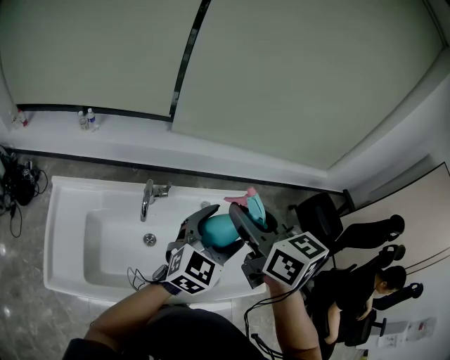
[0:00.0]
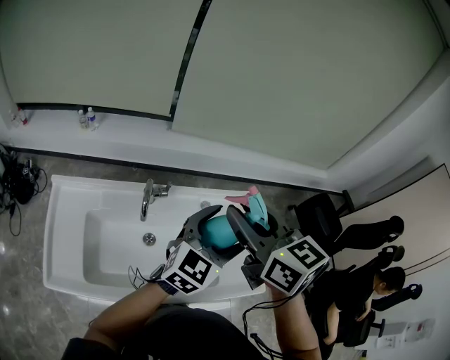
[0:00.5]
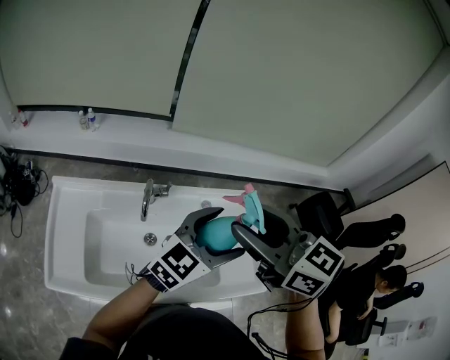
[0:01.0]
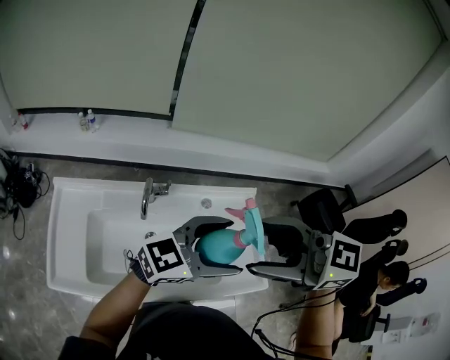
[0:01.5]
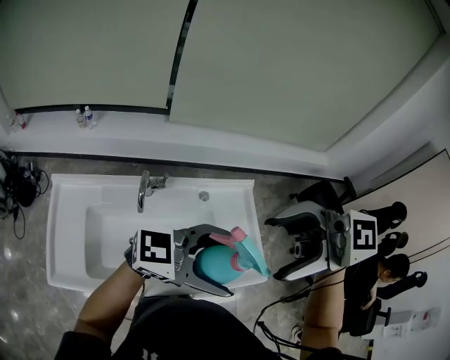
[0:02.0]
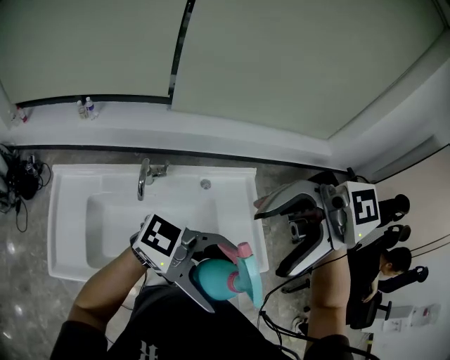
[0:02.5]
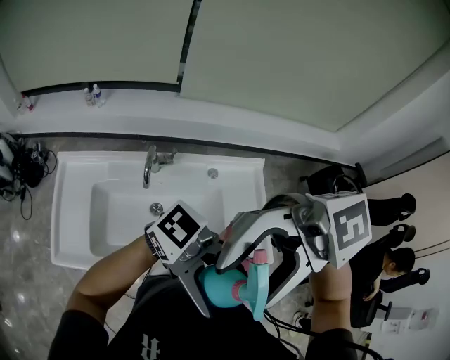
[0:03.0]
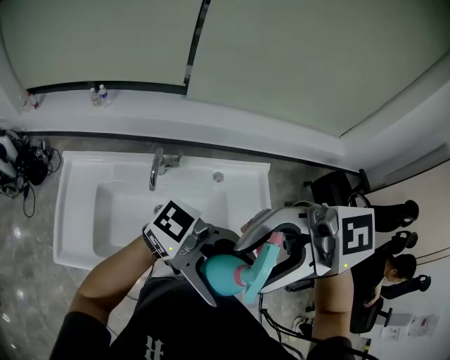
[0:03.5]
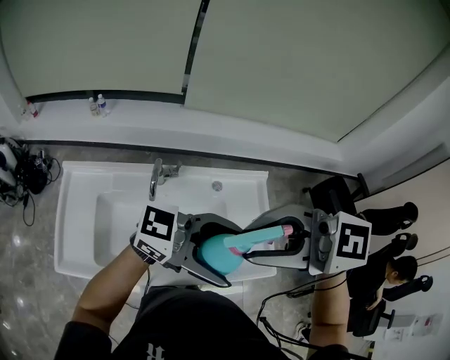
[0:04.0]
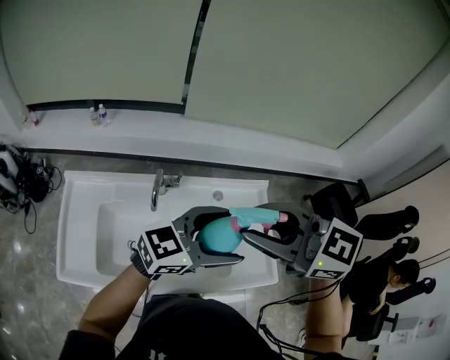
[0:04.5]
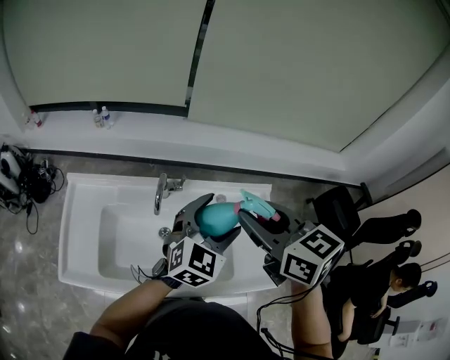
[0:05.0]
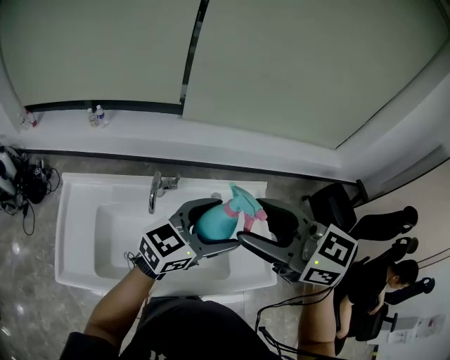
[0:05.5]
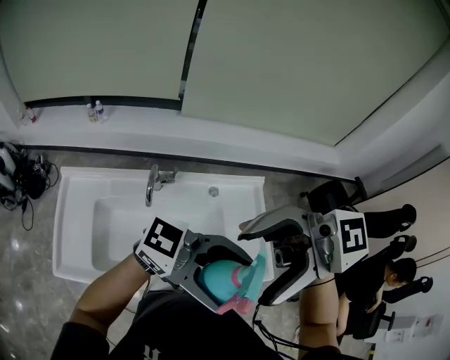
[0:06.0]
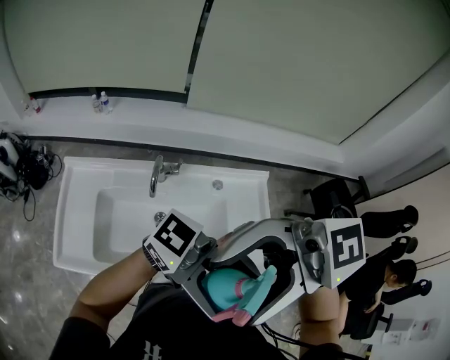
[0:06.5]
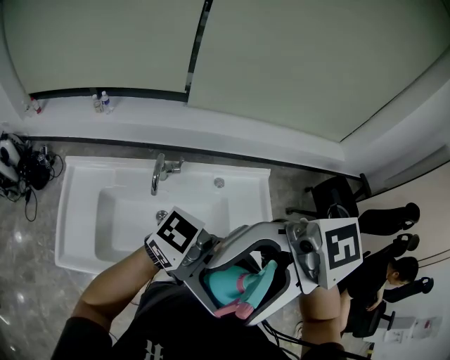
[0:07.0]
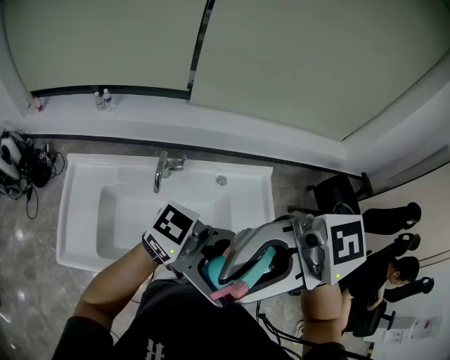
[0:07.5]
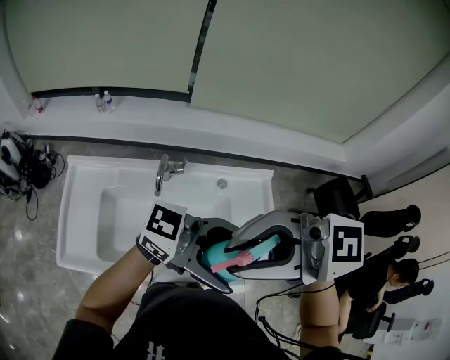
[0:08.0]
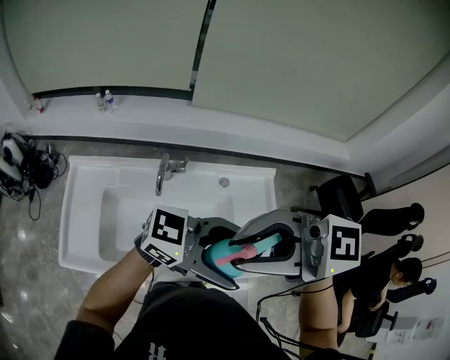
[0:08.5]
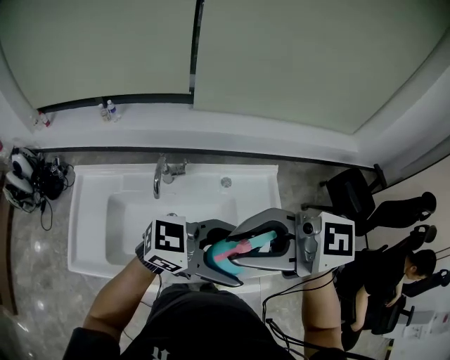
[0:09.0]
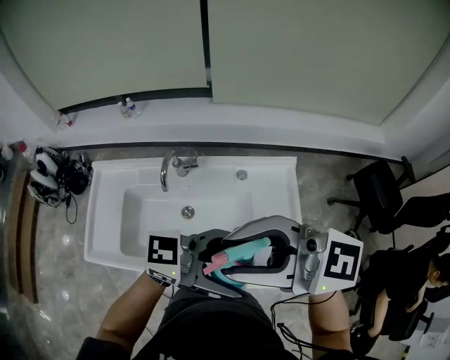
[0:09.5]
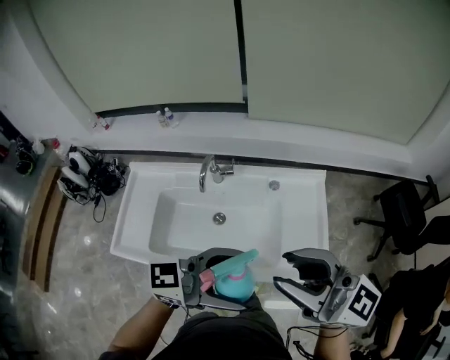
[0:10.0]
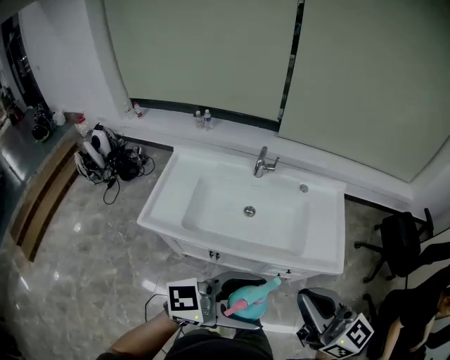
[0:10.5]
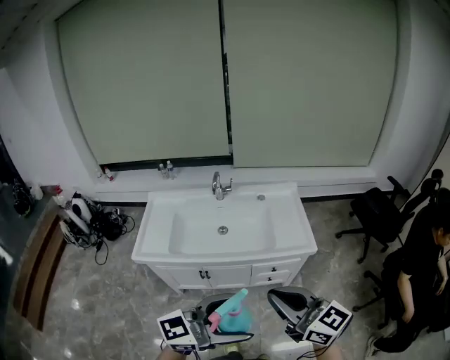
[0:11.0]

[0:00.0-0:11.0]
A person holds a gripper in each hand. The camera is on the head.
0:00.0 to 0:02.0: The left gripper ends up some 15 cm from where it was, and changes its angle by approximately 60 degrees, while the right gripper ends up about 15 cm from where it was, rotates roughly 70 degrees, and opens up.
0:02.0 to 0:03.5: The right gripper rotates about 20 degrees. The left gripper changes its angle by approximately 30 degrees.
0:03.5 to 0:05.5: The right gripper moves approximately 15 cm, and changes its angle by some 60 degrees; the left gripper moves some 20 cm, and turns by approximately 70 degrees.
0:05.5 to 0:07.5: The right gripper ends up roughly 15 cm from where it was, rotates approximately 60 degrees, and closes its fingers. The left gripper shifts by roughly 20 cm, and changes its angle by roughly 60 degrees.
0:07.5 to 0:09.0: The right gripper shifts by roughly 5 cm, and rotates approximately 20 degrees. Meanwhile the left gripper is displaced downward by some 5 cm, and swivels approximately 30 degrees.
0:09.0 to 0:11.0: The two grippers travel together, approximately 50 cm. The left gripper turns by some 30 degrees; the right gripper changes its angle by some 40 degrees.

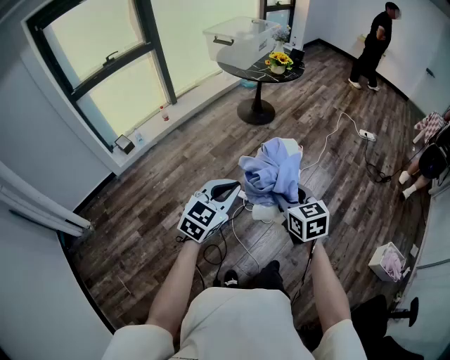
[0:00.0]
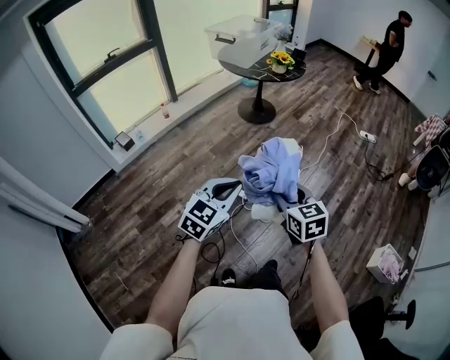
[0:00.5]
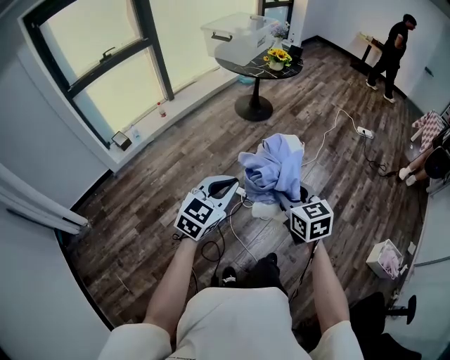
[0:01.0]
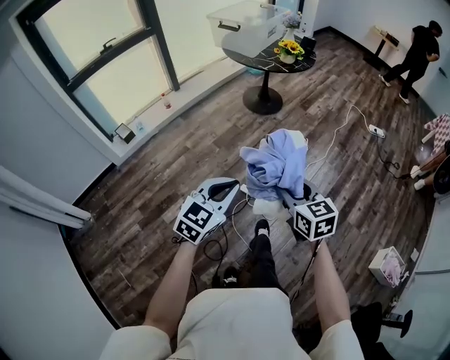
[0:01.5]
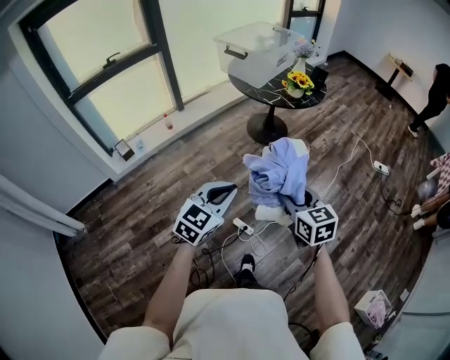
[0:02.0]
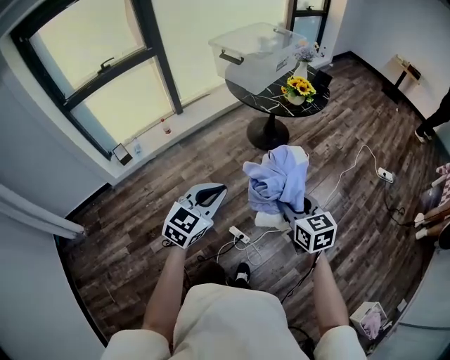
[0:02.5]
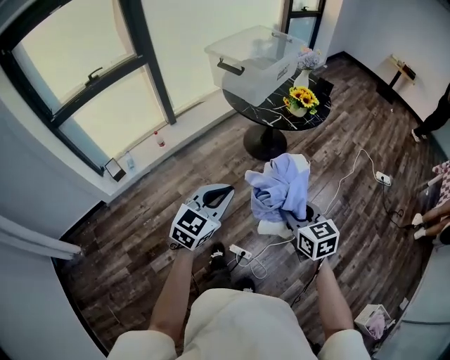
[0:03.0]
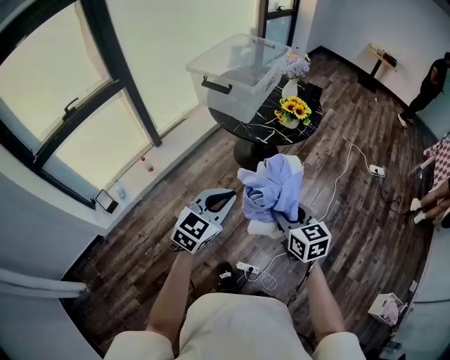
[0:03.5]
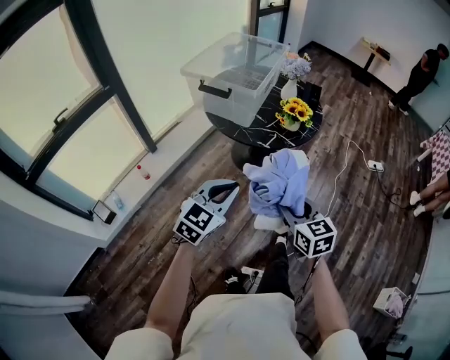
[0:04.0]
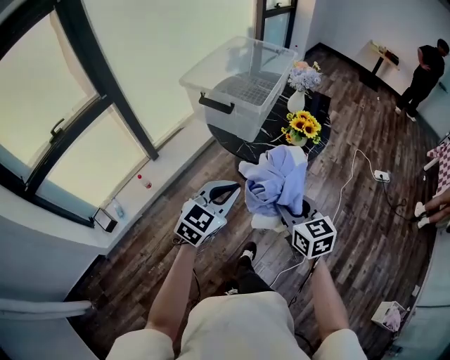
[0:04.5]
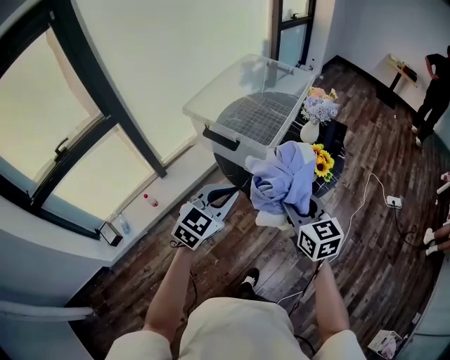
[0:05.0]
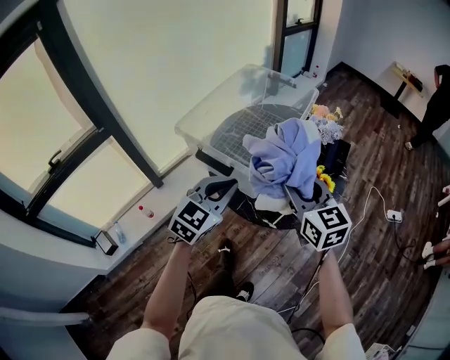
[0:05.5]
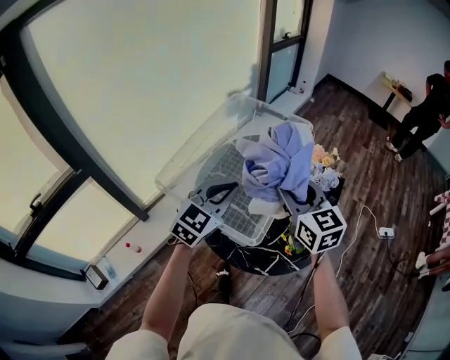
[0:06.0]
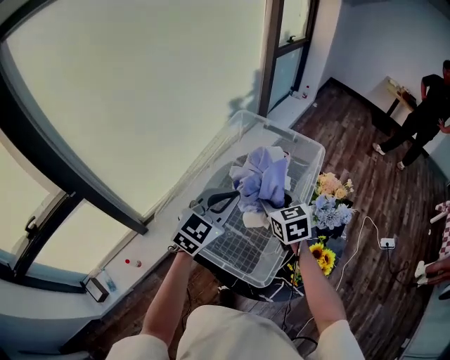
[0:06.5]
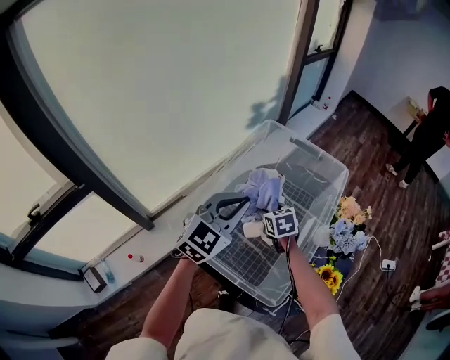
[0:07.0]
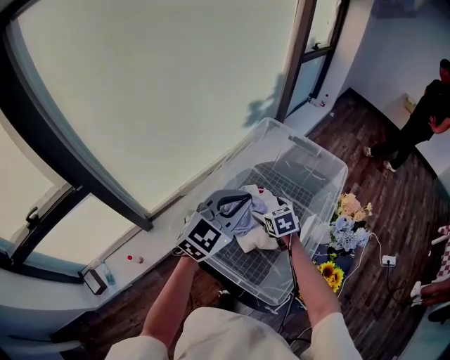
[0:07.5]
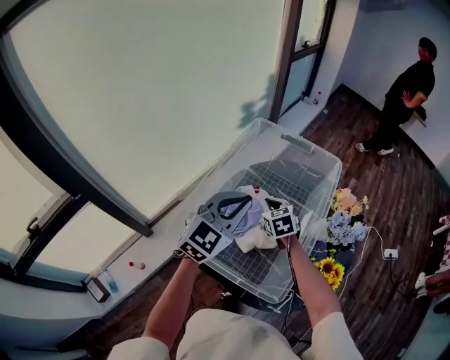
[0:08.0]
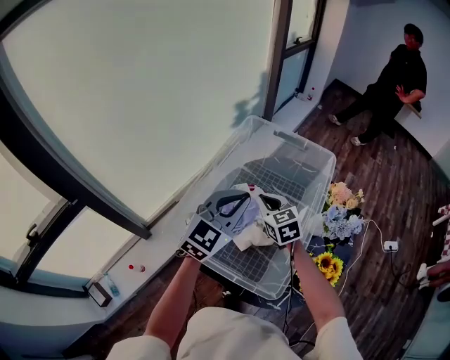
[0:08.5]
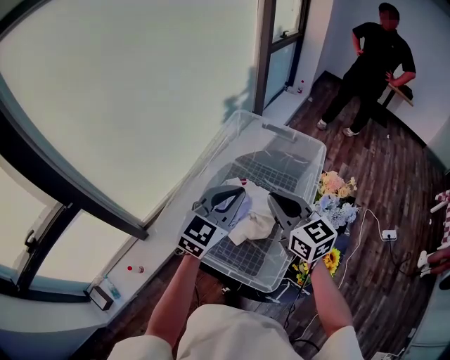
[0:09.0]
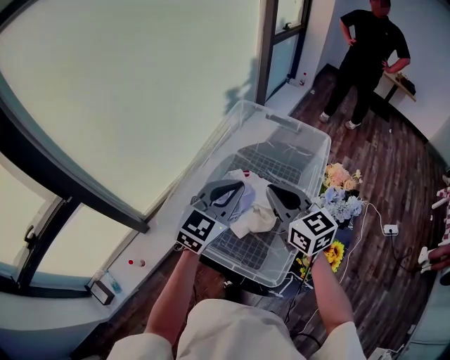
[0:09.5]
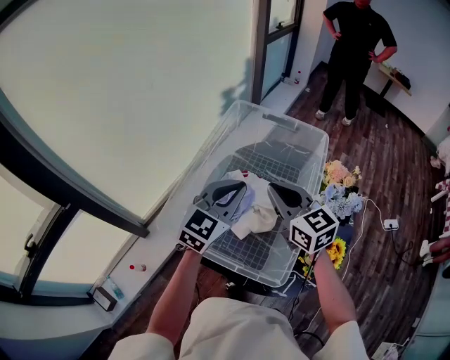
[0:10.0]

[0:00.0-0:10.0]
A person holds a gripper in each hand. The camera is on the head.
0:00.0 to 0:02.0: The two grippers go roughly 25 cm forward.
0:02.0 to 0:04.0: Both grippers move forward, about 35 cm.
0:04.0 to 0:06.0: The two grippers travel together, forward, about 60 cm.
0:06.0 to 0:08.0: The left gripper shifts about 15 cm forward and to the left; the right gripper moves downward, forward and to the left, some 30 cm, angles its fingers downward, by roughly 30 degrees, and closes up.
0:08.0 to 0:10.0: The right gripper shifts approximately 20 cm upward and backward, and swivels approximately 30 degrees.

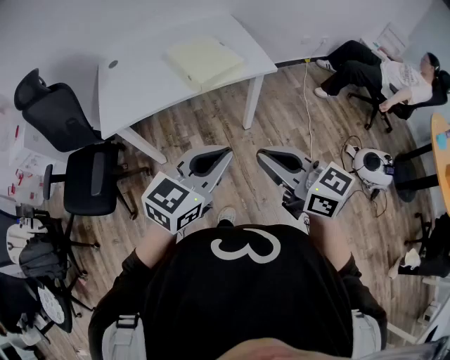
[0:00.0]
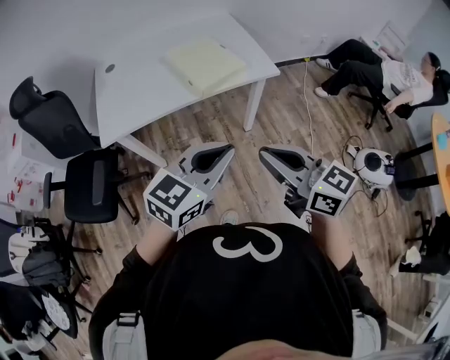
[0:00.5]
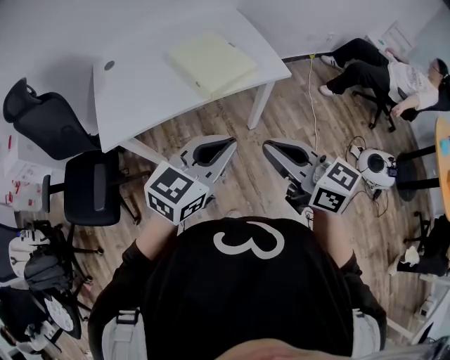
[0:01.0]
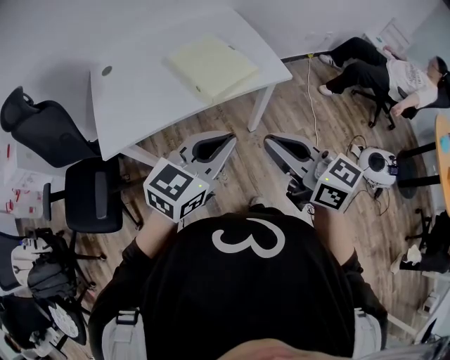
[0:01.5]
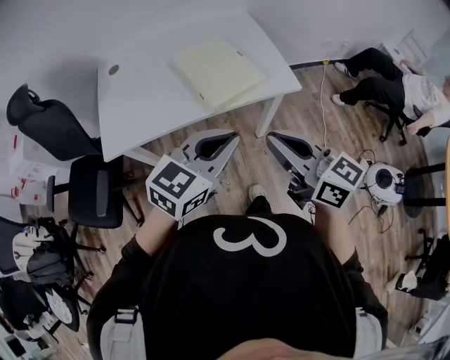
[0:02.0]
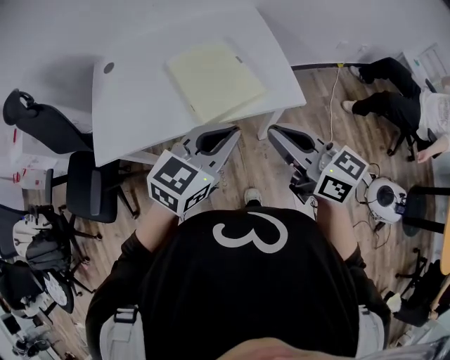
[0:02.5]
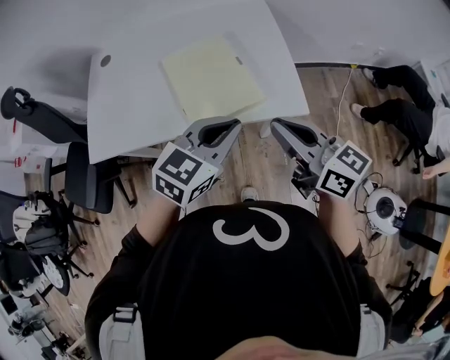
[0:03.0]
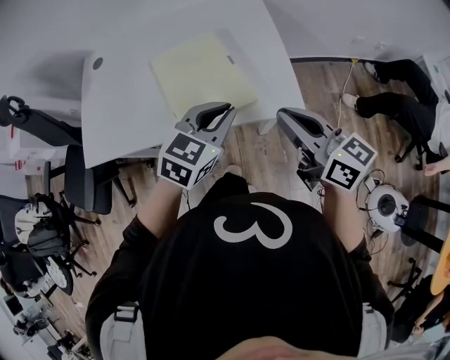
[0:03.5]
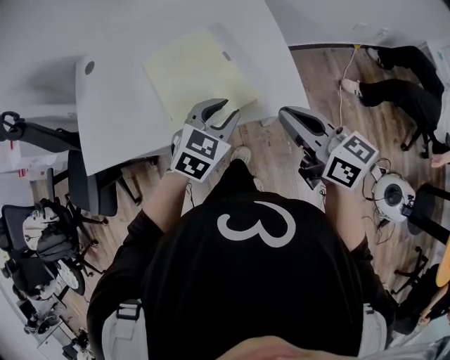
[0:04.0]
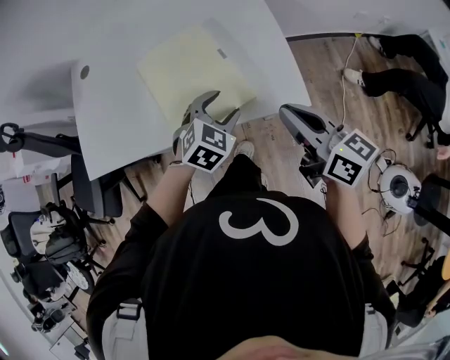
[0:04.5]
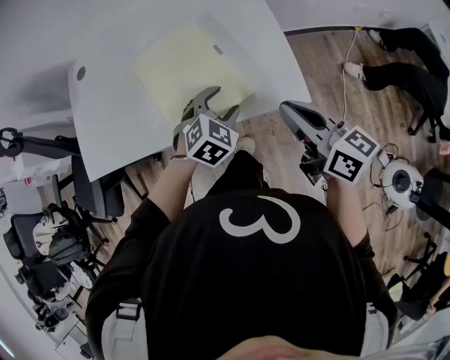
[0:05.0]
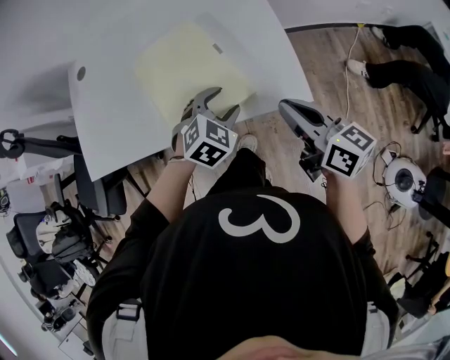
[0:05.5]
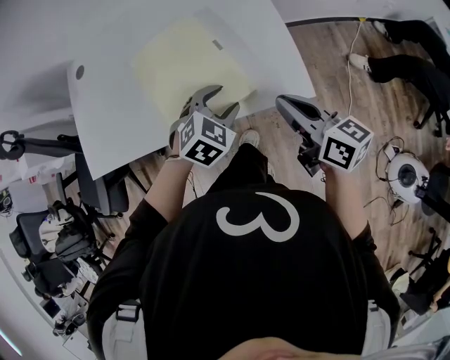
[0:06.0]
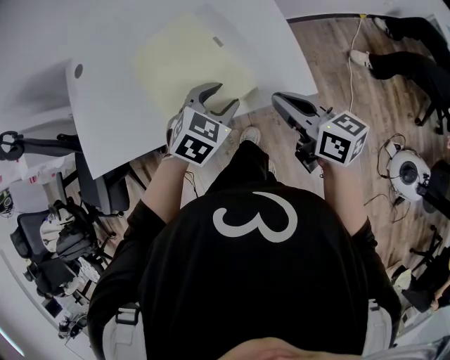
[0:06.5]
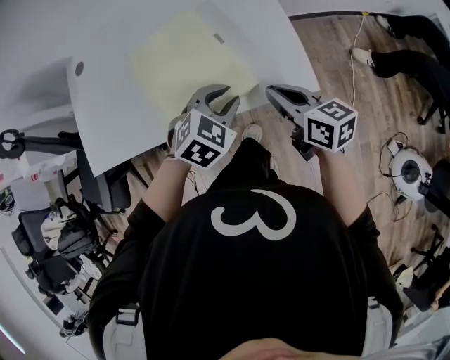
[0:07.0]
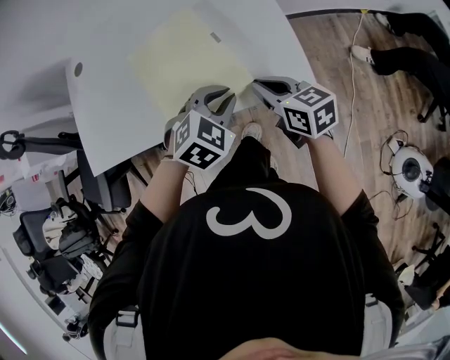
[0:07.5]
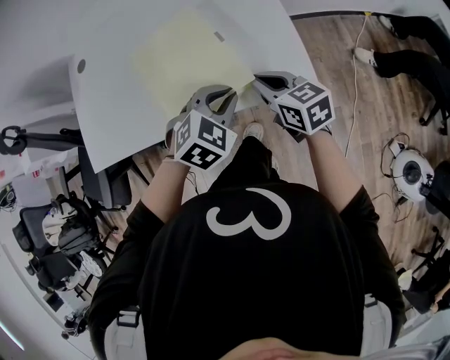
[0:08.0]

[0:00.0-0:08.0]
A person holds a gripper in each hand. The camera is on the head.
0:00.0 to 0:02.0: Both grippers travel together forward, roughly 20 cm.
0:02.0 to 0:04.0: The right gripper is displaced forward, to the right and downward by approximately 30 cm. Meanwhile the left gripper travels forward, downward and to the right by roughly 35 cm, rotates about 30 degrees, and opens up.
0:04.0 to 0:06.0: The two grippers go about 5 cm downward. The left gripper opens its fingers.
0:06.0 to 0:08.0: The left gripper closes up; the right gripper shifts approximately 10 cm downward and to the left, and rotates approximately 20 degrees.
